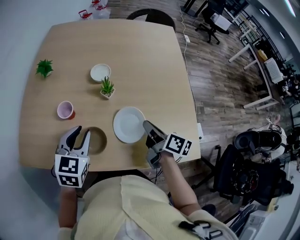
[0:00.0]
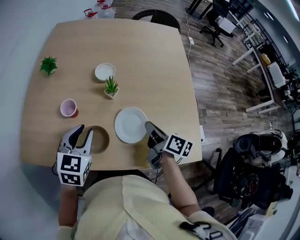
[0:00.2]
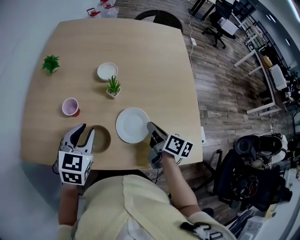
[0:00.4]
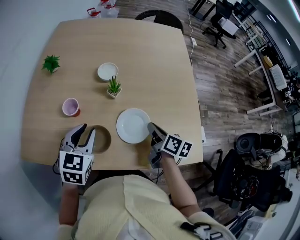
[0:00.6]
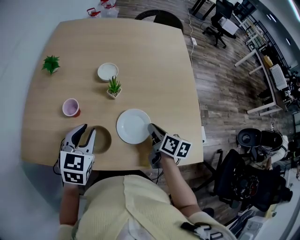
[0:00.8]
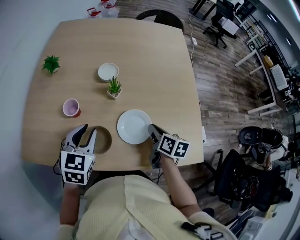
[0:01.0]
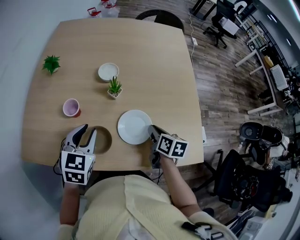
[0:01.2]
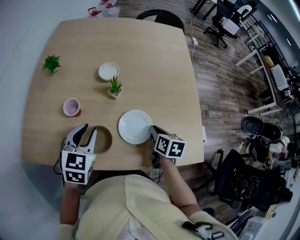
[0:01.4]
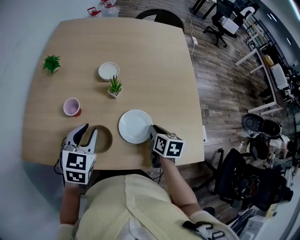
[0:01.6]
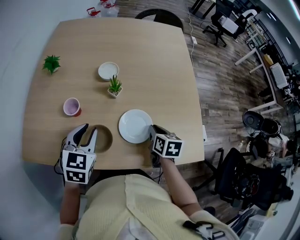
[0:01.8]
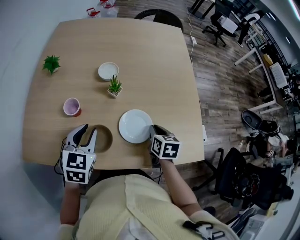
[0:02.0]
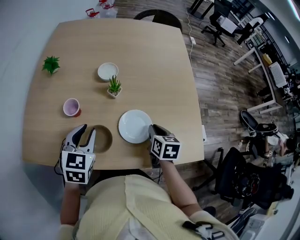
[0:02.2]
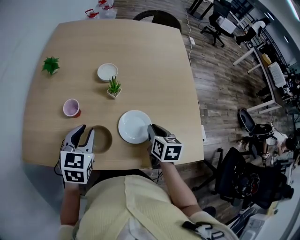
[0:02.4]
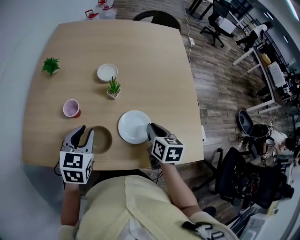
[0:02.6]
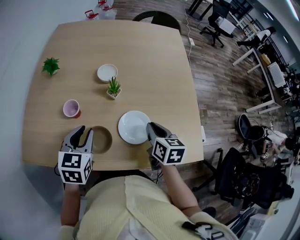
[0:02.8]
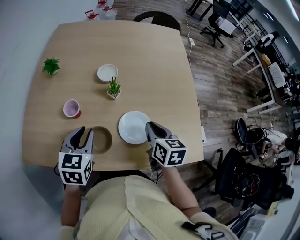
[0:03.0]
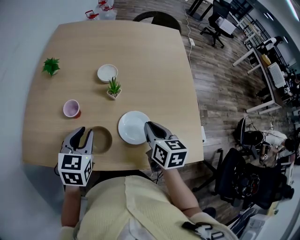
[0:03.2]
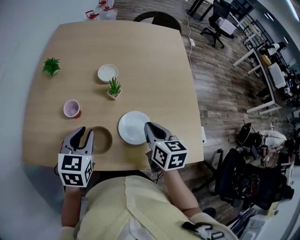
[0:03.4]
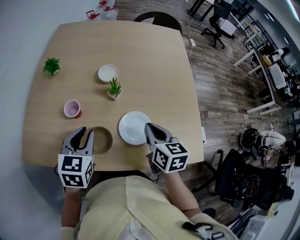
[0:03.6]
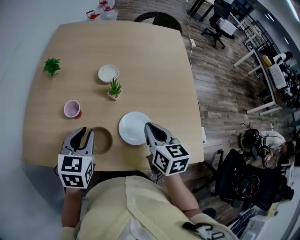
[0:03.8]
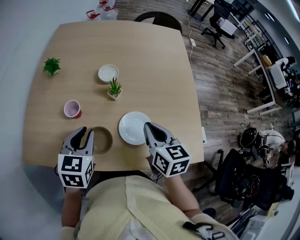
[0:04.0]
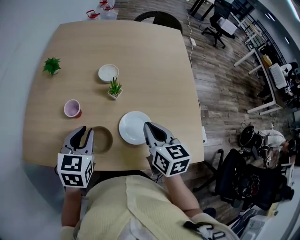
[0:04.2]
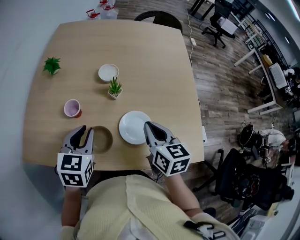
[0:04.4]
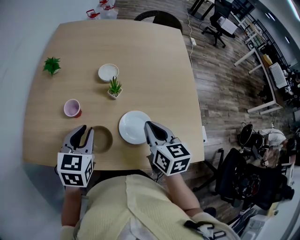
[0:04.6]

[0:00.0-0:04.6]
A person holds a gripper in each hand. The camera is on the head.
0:00.0 to 0:01.6: The right gripper is displaced downward by some 5 cm, and swivels some 40 degrees.
0:01.6 to 0:03.0: The right gripper is displaced upward by about 10 cm.
0:03.0 to 0:04.6: The right gripper shifts by about 5 cm.

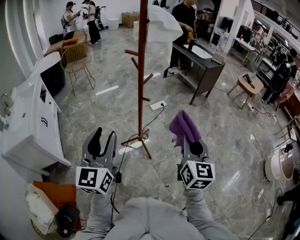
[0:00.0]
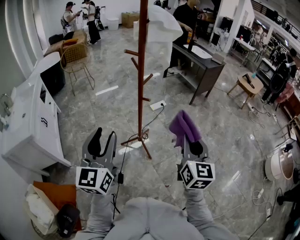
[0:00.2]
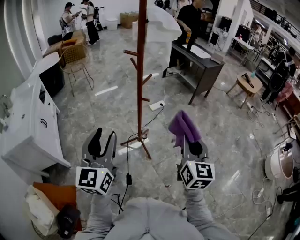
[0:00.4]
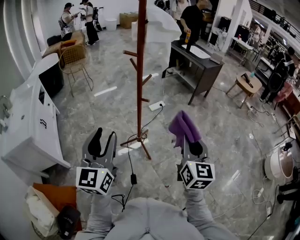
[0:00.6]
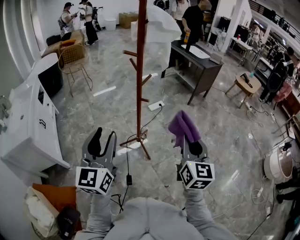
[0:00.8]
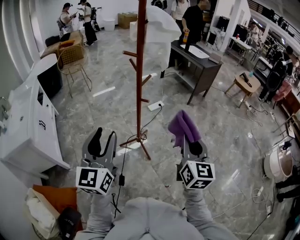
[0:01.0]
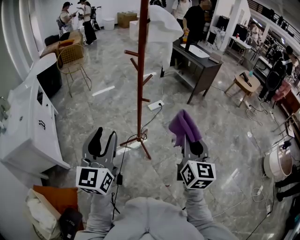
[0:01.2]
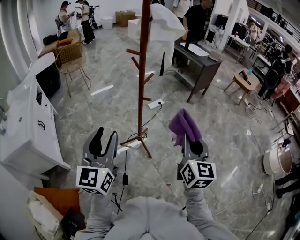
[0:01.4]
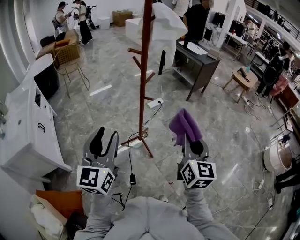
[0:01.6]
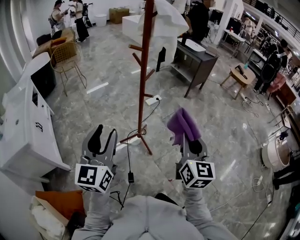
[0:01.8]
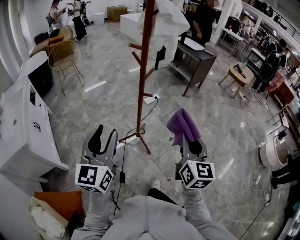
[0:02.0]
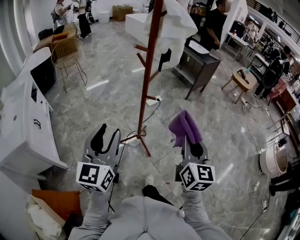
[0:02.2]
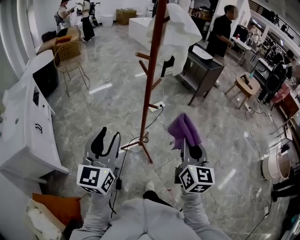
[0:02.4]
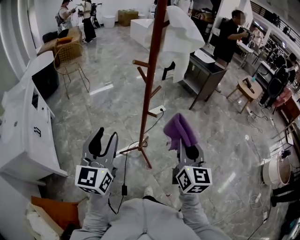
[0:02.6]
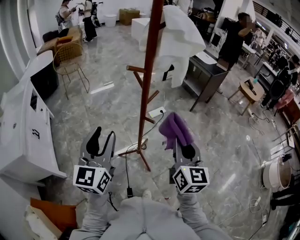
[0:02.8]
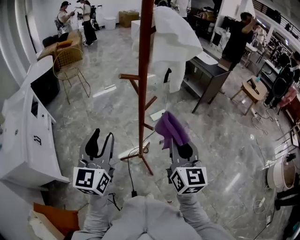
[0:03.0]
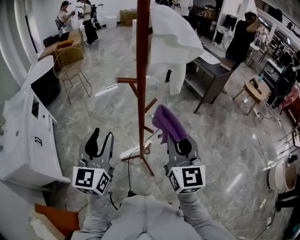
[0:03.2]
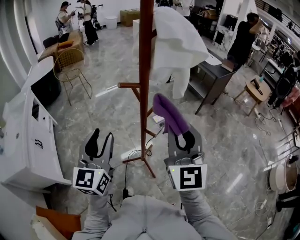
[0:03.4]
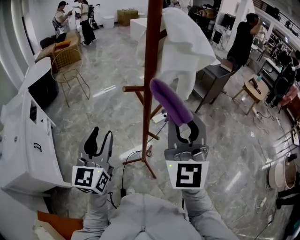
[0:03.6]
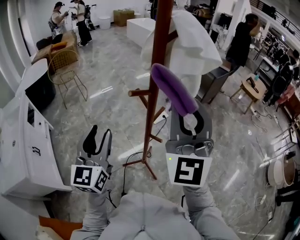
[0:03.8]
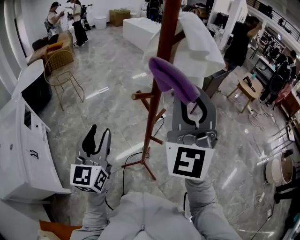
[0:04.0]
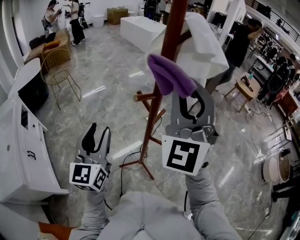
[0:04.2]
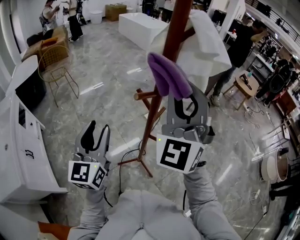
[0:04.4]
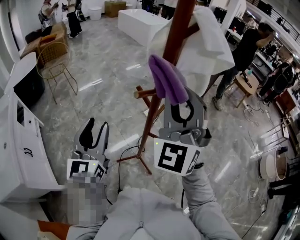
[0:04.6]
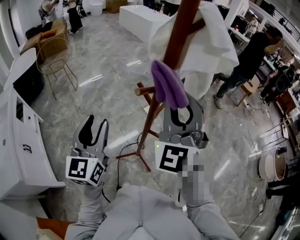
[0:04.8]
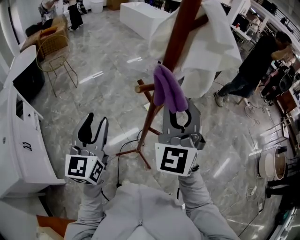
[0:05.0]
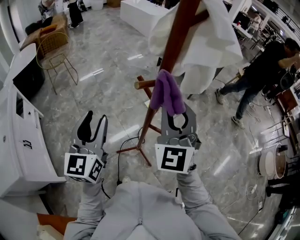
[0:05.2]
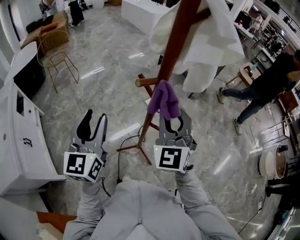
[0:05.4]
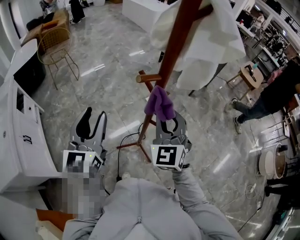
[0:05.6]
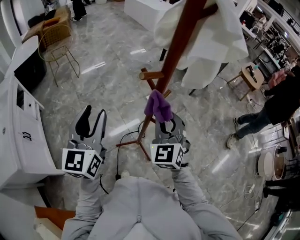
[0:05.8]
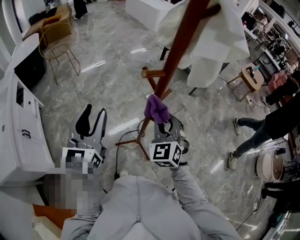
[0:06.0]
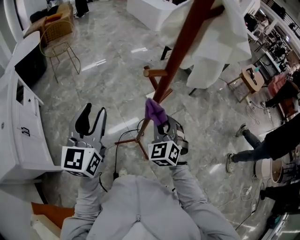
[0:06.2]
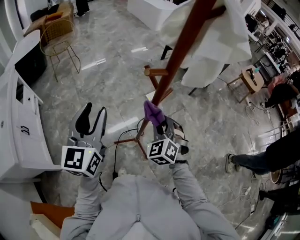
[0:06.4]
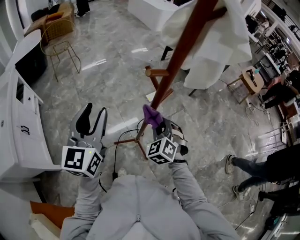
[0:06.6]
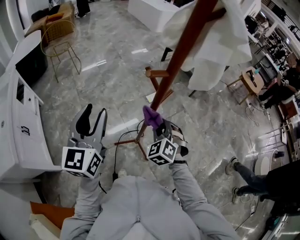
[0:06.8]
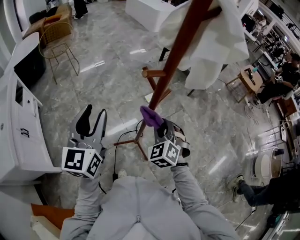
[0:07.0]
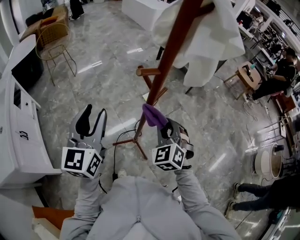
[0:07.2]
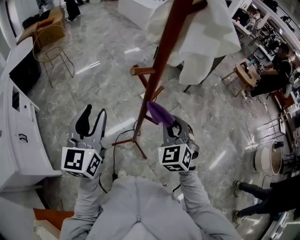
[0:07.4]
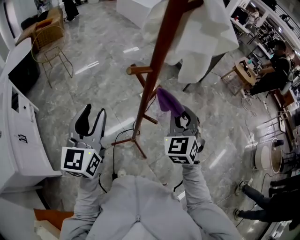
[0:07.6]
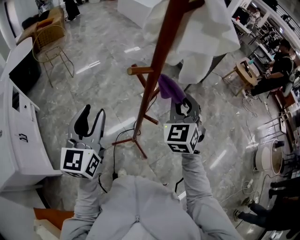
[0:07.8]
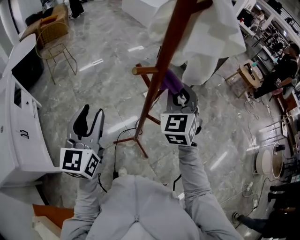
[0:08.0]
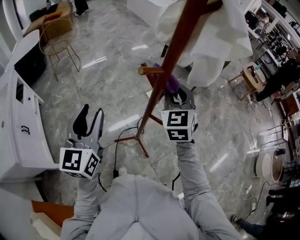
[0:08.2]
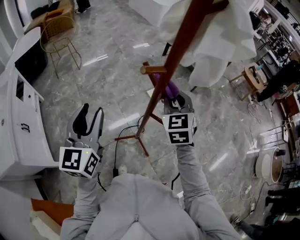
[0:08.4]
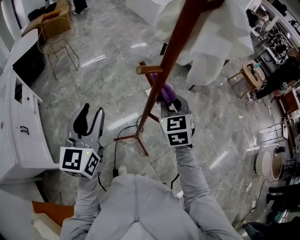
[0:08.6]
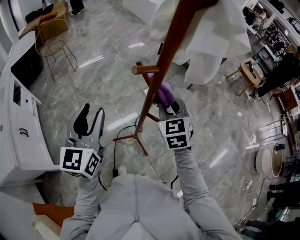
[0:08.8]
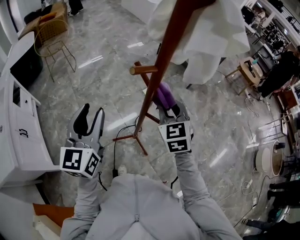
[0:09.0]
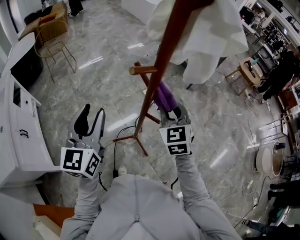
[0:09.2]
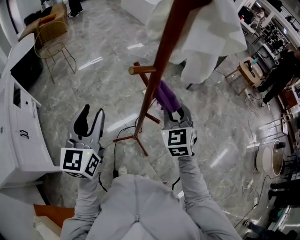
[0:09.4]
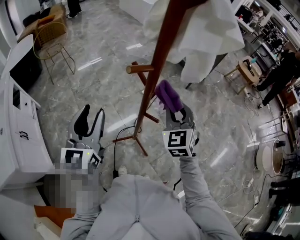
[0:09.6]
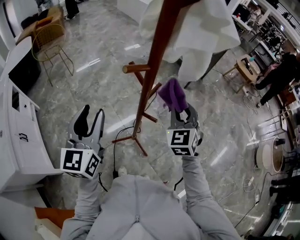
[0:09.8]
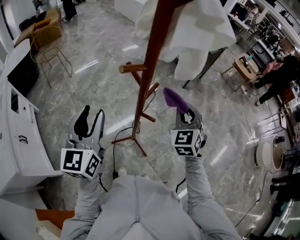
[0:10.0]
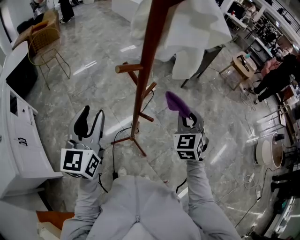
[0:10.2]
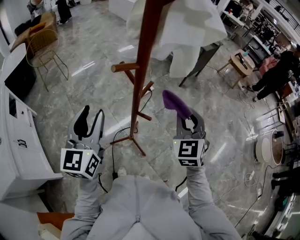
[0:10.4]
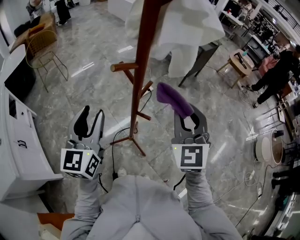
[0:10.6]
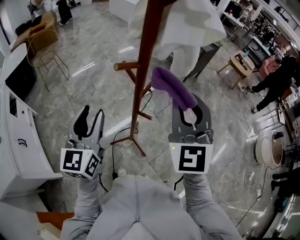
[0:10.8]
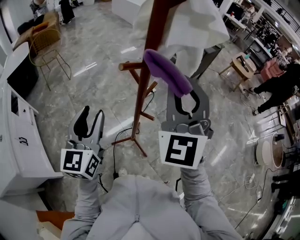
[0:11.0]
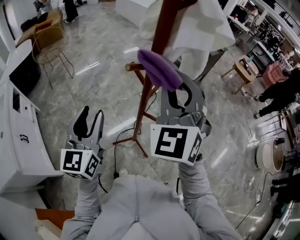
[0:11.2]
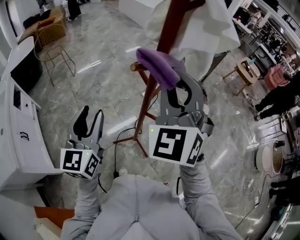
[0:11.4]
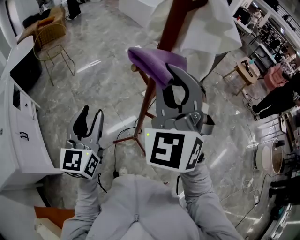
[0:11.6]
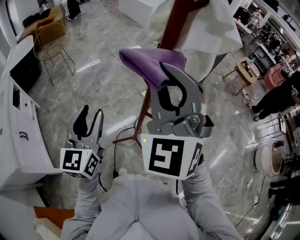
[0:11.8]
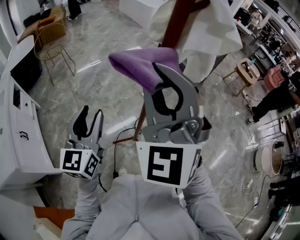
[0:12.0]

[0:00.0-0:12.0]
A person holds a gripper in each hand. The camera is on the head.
0:00.0 to 0:01.6: The grippers stay close to where they were, moving slightly.
0:01.6 to 0:03.0: Both grippers travel together forward, some 20 cm.
0:03.0 to 0:04.4: The right gripper goes roughly 25 cm upward, forward and to the left, and twists about 50 degrees counterclockwise, seen from behind, while the left gripper travels forward and to the left by approximately 15 cm.
0:04.4 to 0:06.0: The right gripper heads downward, covering about 30 cm, and tips its fingers downward by approximately 30 degrees.
0:06.0 to 0:07.6: The right gripper heads to the right, covering roughly 10 cm.
0:07.6 to 0:09.0: The right gripper shifts some 5 cm to the left, goes upward and returns, some 5 cm each way, and turns by approximately 20 degrees.
0:09.0 to 0:10.4: The right gripper goes about 10 cm to the right and backward.
0:10.4 to 0:12.0: The right gripper shifts about 30 cm upward and to the left, and changes its angle by about 30 degrees.

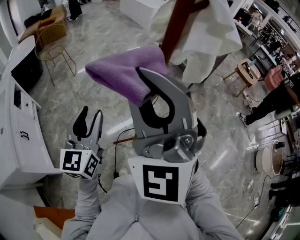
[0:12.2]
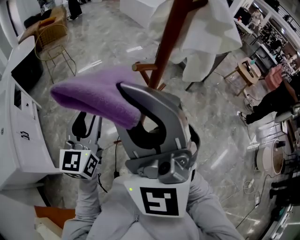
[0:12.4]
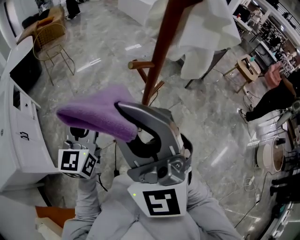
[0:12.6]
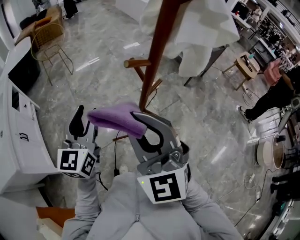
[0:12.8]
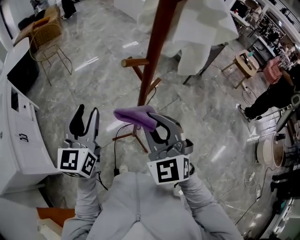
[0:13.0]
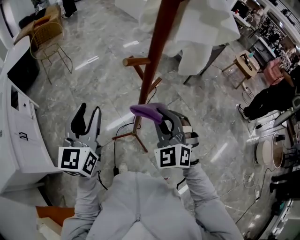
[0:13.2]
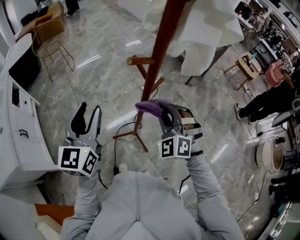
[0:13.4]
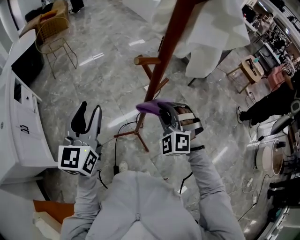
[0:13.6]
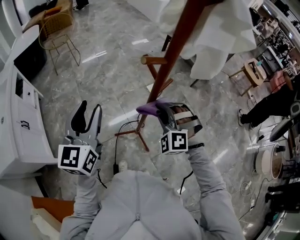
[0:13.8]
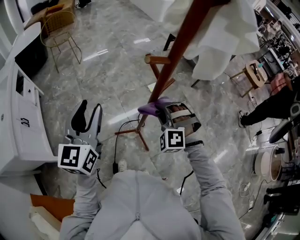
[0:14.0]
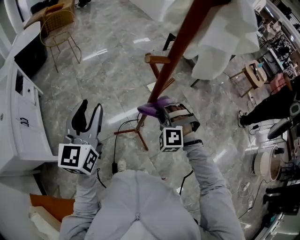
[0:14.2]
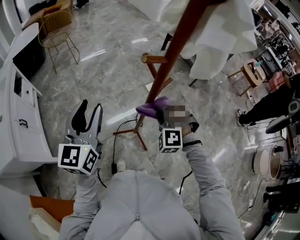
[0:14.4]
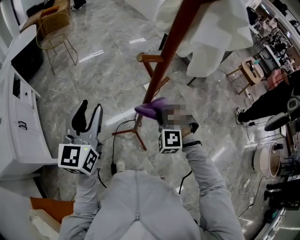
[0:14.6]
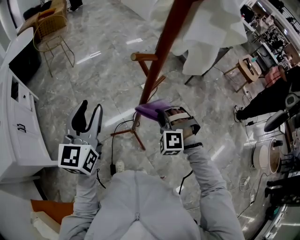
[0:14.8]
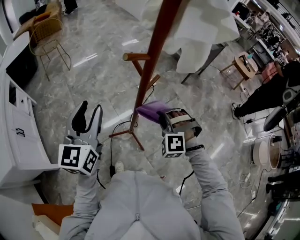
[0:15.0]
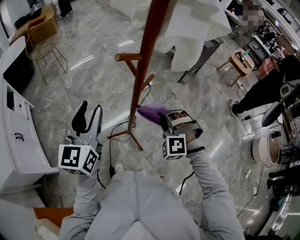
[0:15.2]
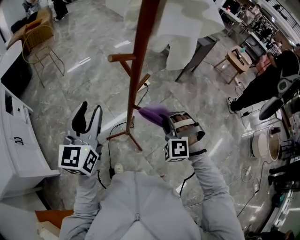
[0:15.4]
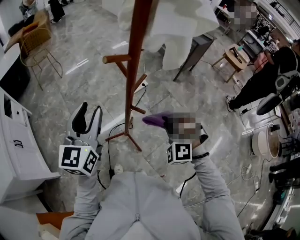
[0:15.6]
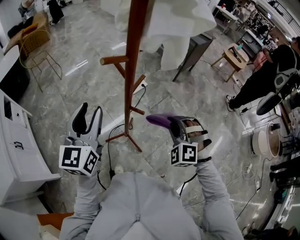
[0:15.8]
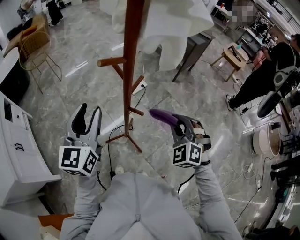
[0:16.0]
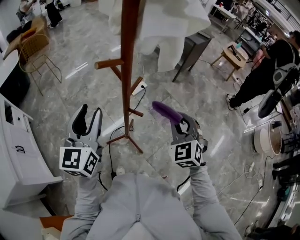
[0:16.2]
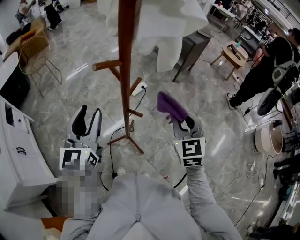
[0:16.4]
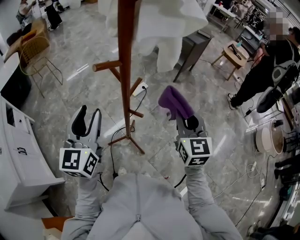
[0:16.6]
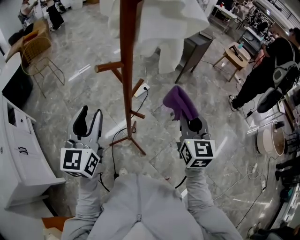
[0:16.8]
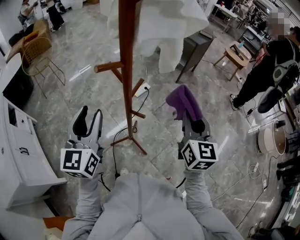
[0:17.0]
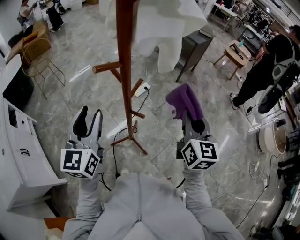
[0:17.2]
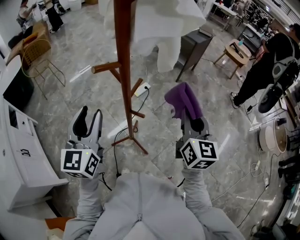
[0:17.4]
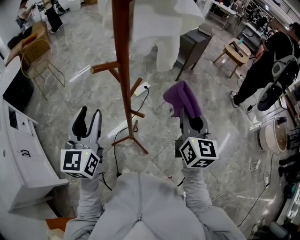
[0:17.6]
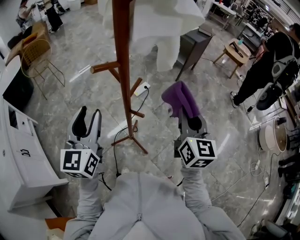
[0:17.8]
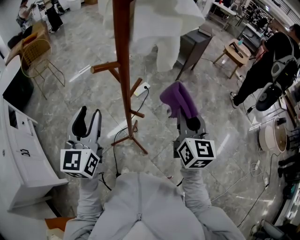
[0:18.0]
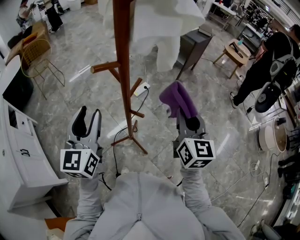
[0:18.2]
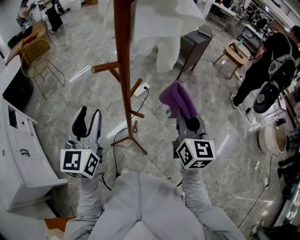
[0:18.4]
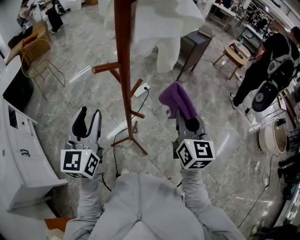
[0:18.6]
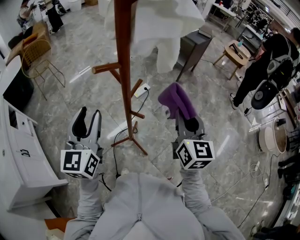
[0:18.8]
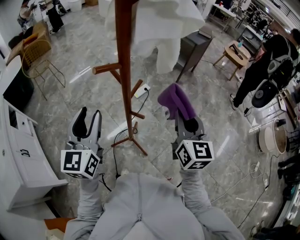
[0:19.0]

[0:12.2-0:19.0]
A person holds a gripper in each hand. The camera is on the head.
0:12.2 to 0:13.6: The right gripper travels downward by roughly 30 cm, and tilts its fingers roughly 40 degrees downward.
0:13.6 to 0:15.0: The right gripper heads downward, covering some 5 cm, and rotates roughly 20 degrees.
0:15.0 to 0:16.2: The right gripper shifts some 15 cm to the right and upward, and rotates around the line of its fingers by about 50 degrees, clockwise from behind, while the left gripper goes approximately 5 cm to the right.
0:16.2 to 0:17.6: The right gripper heads upward, covering approximately 10 cm, and rolls clockwise, seen from behind, by about 50 degrees.
0:17.6 to 0:19.0: The grippers make only small movements.
